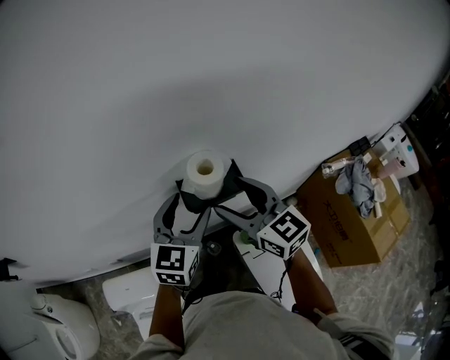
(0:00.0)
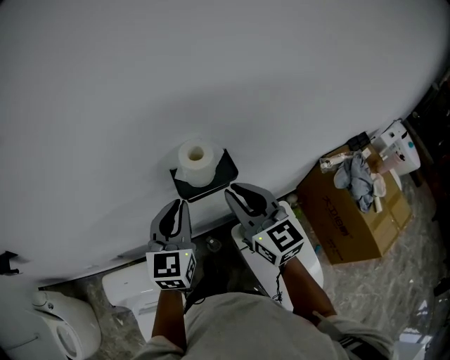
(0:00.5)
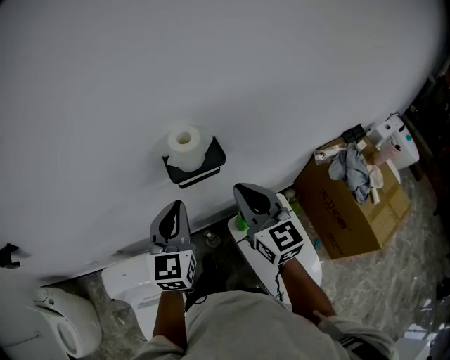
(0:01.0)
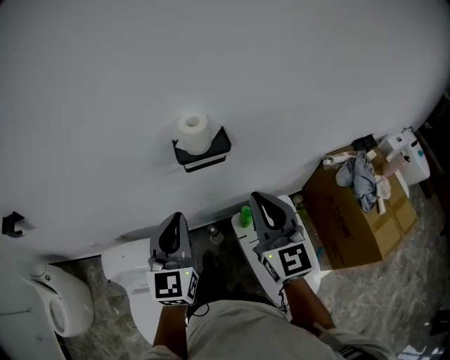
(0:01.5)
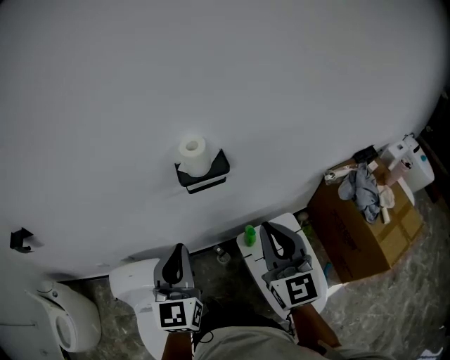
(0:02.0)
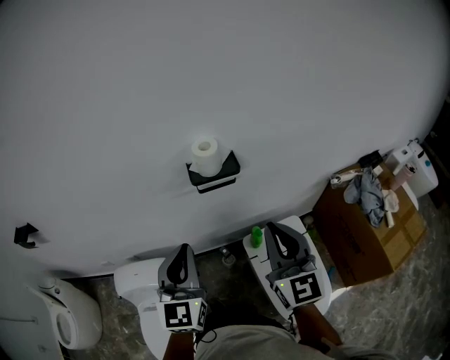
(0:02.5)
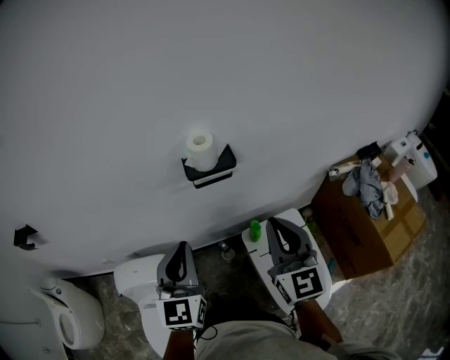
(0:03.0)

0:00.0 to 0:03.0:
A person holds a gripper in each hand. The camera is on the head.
0:00.0 to 0:01.5: The right gripper heads backward and to the right, covering about 20 cm, turns by approximately 20 degrees, and closes its fingers. The left gripper goes roughly 20 cm backward, and closes up.
0:01.5 to 0:03.0: The left gripper shifts by approximately 5 cm.

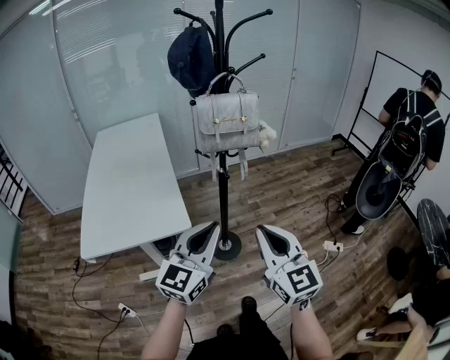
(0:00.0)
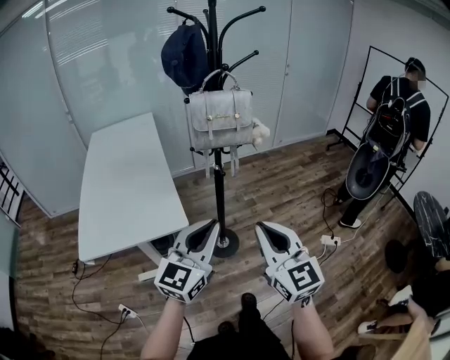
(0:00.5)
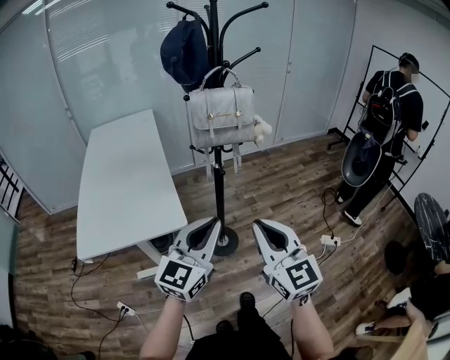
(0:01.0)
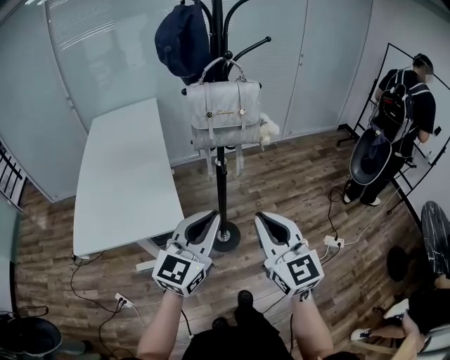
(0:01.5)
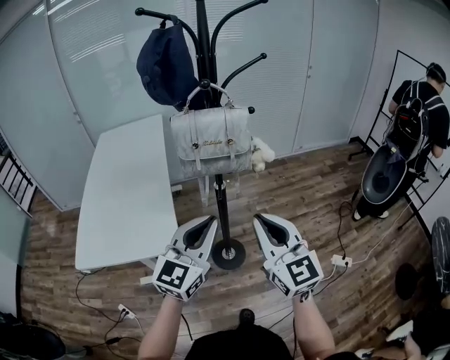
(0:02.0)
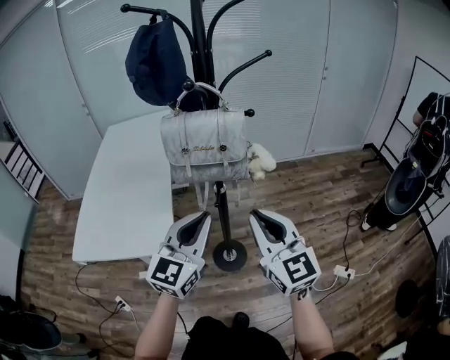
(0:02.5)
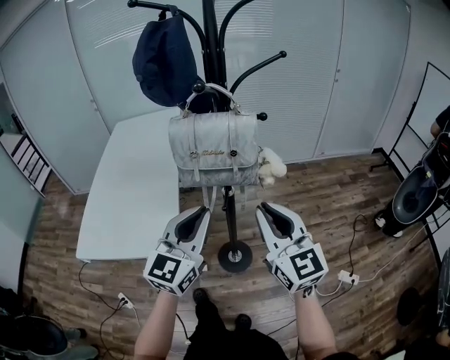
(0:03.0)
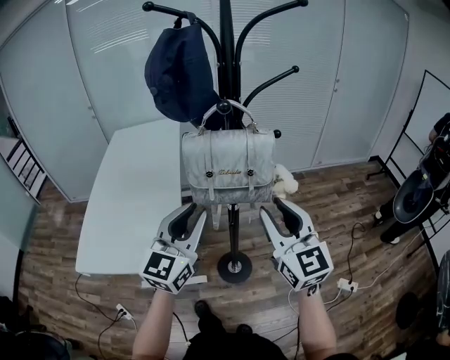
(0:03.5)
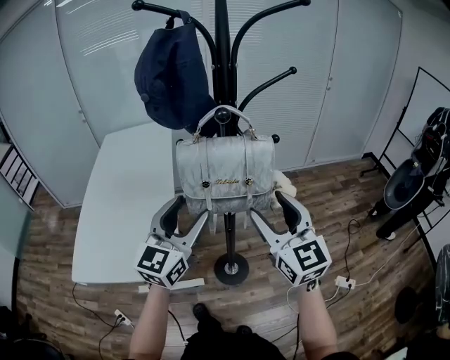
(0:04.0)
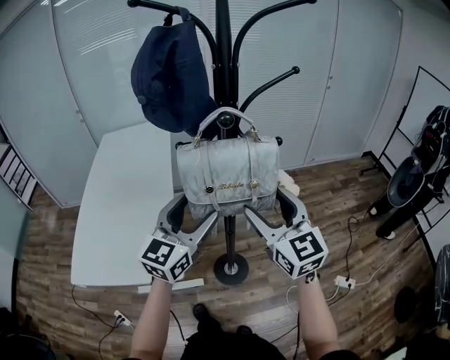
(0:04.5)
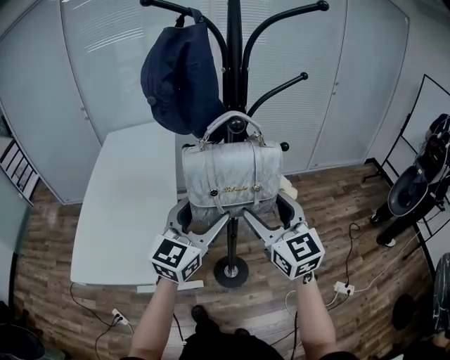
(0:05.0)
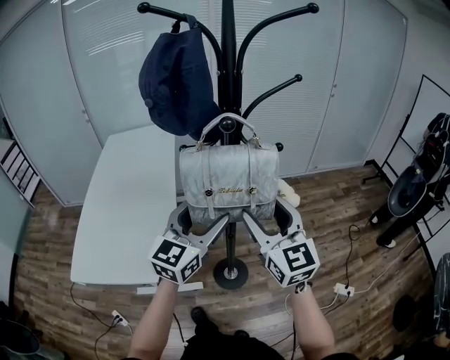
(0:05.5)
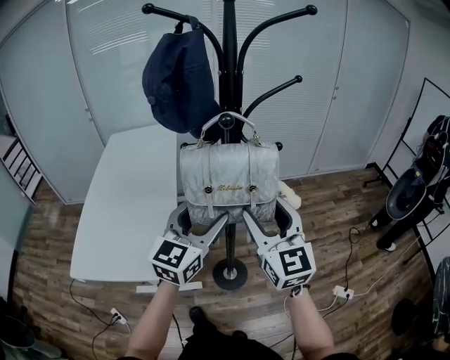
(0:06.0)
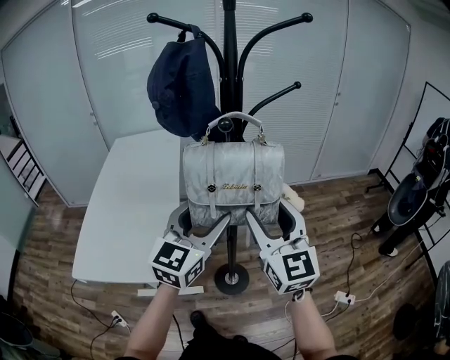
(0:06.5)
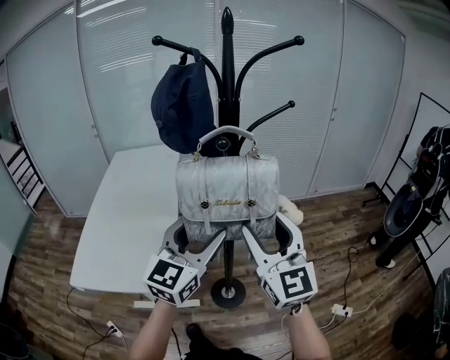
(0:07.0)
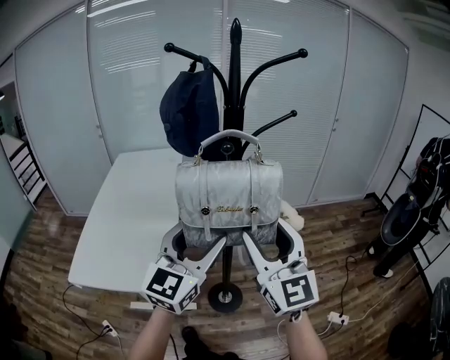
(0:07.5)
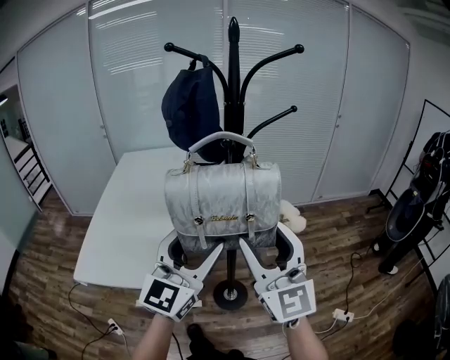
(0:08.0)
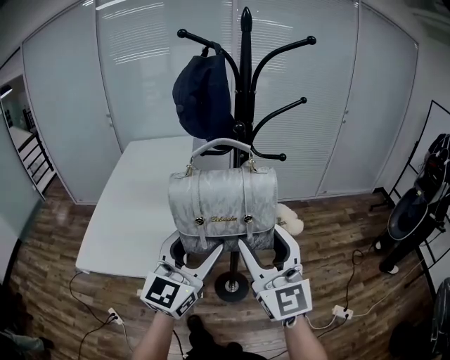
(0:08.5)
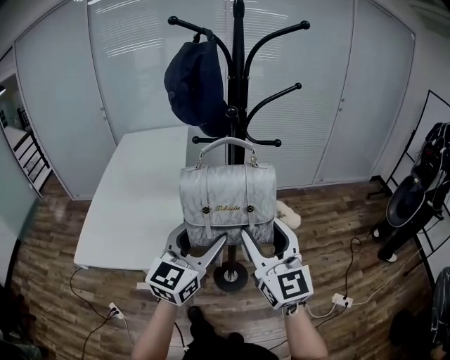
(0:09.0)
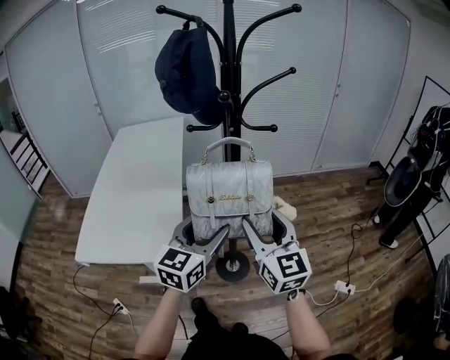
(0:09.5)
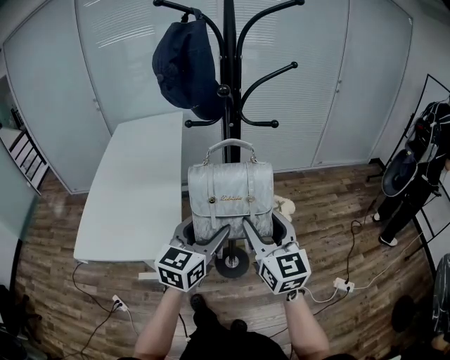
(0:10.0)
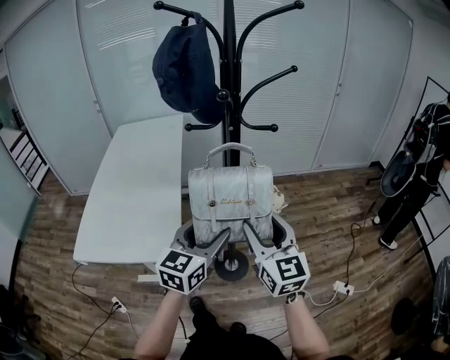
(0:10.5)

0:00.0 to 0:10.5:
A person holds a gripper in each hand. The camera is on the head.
0:00.0 to 0:02.0: The two grippers go some 15 cm forward.
0:02.0 to 0:04.0: The left gripper heads forward and to the left, covering approximately 15 cm, and opens its fingers; the right gripper heads forward, covering about 15 cm, and opens.
0:04.0 to 0:06.5: The left gripper moves about 5 cm.
0:06.5 to 0:08.5: The two grippers go roughly 10 cm backward.
0:08.5 to 0:10.5: The two grippers go about 10 cm downward. The right gripper rotates about 20 degrees. The left gripper rotates some 20 degrees.

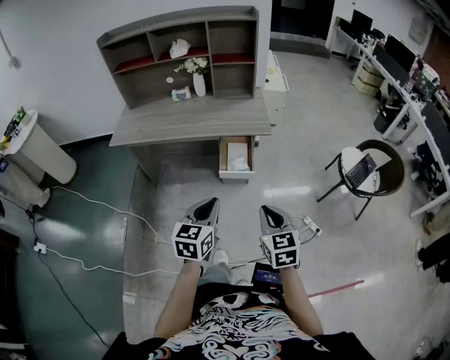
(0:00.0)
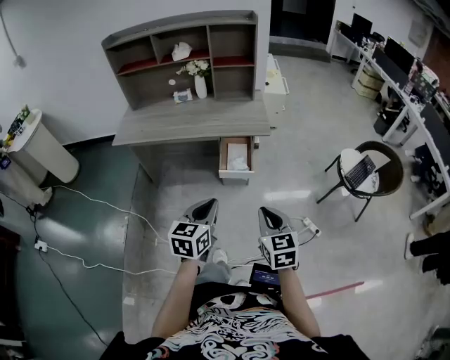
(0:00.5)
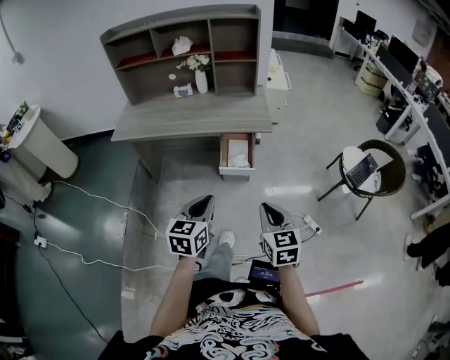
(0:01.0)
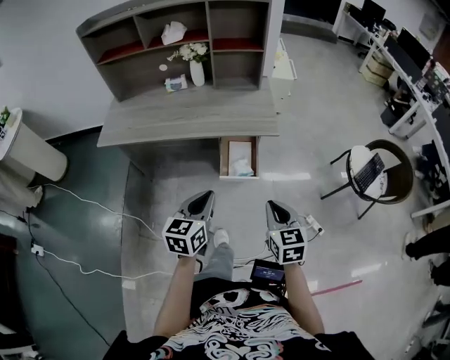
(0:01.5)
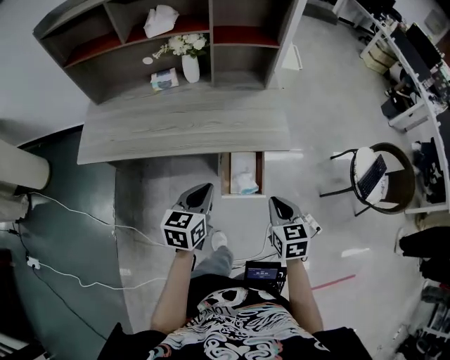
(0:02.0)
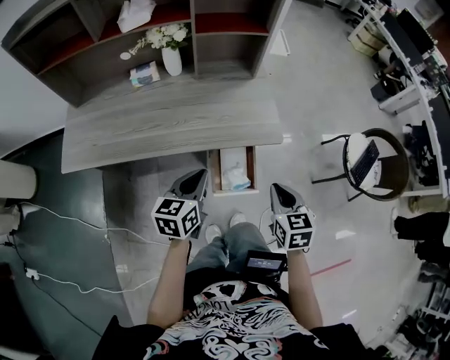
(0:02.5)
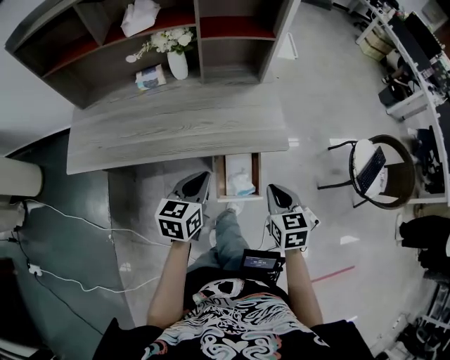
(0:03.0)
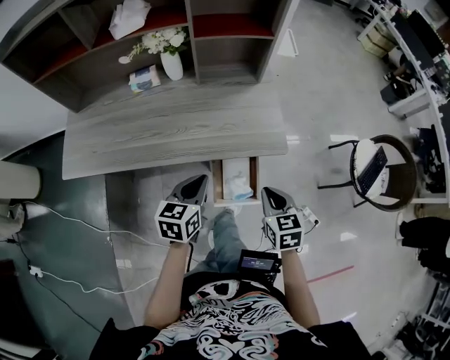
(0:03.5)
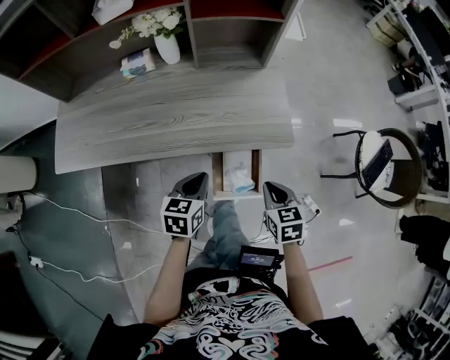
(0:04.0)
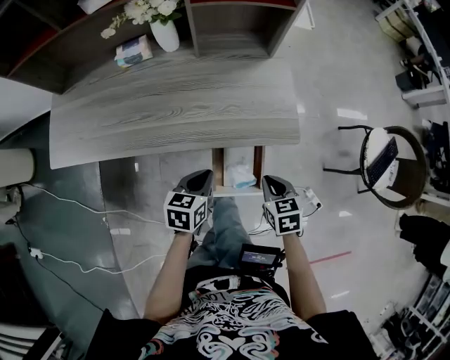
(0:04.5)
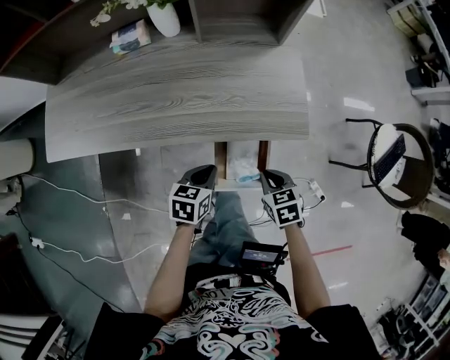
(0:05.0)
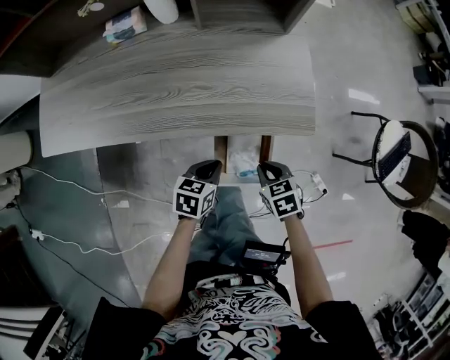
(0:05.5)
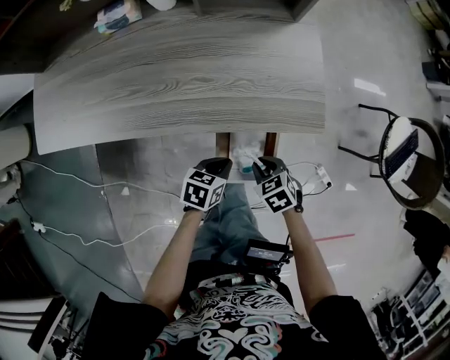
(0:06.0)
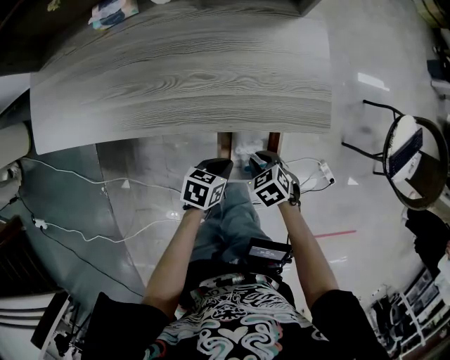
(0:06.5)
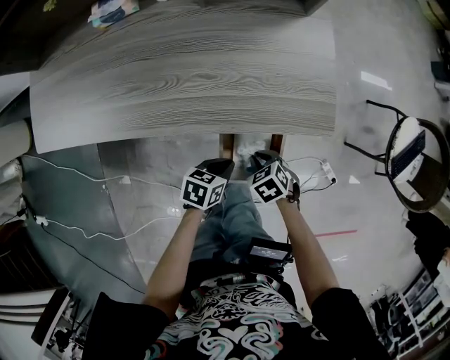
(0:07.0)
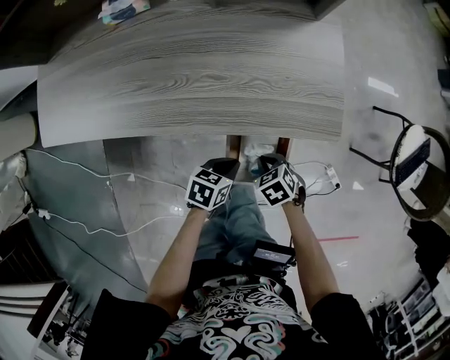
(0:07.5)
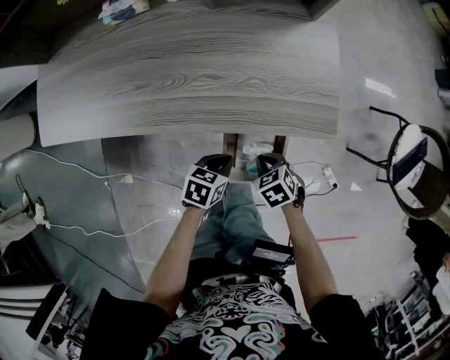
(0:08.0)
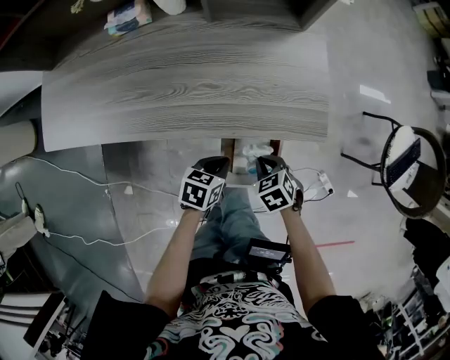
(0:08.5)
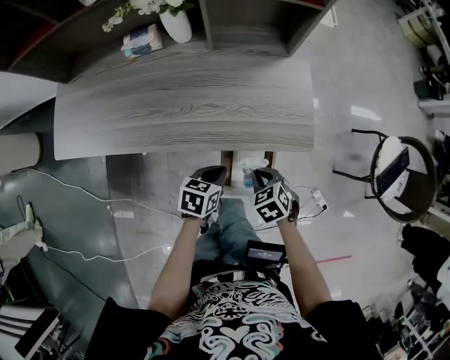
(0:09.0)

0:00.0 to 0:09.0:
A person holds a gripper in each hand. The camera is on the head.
0:00.0 to 0:02.0: Both grippers travel together forward, roughly 30 cm.
0:02.0 to 0:04.5: Both grippers travel together downward and forward, about 15 cm.
0:04.5 to 0:07.0: Both grippers travel together downward, approximately 15 cm. The right gripper swivels some 30 degrees. The left gripper swivels roughly 20 degrees.
0:07.0 to 0:09.0: The grippers both shift upward by approximately 10 cm.

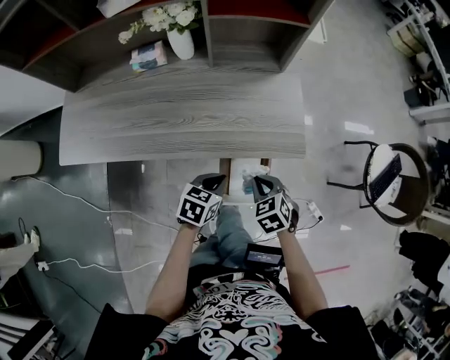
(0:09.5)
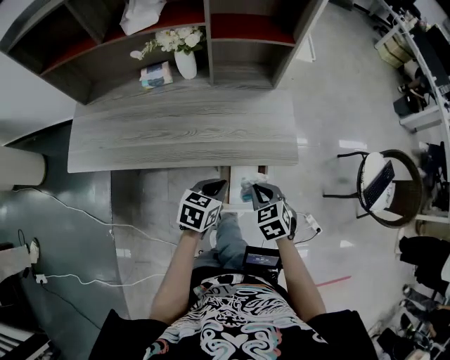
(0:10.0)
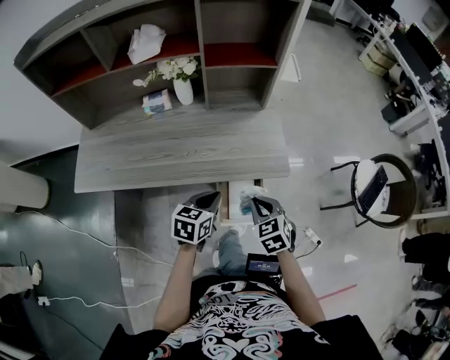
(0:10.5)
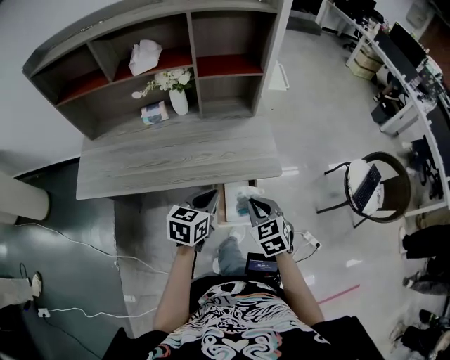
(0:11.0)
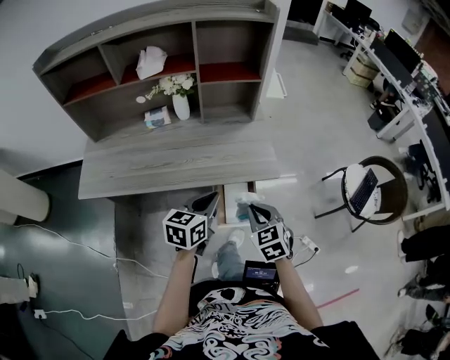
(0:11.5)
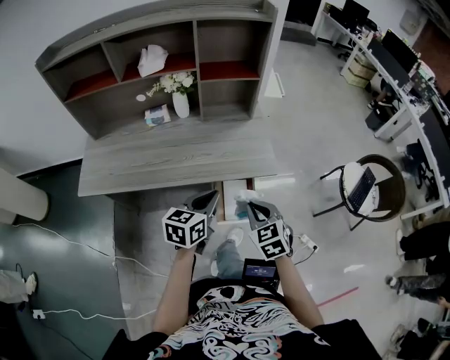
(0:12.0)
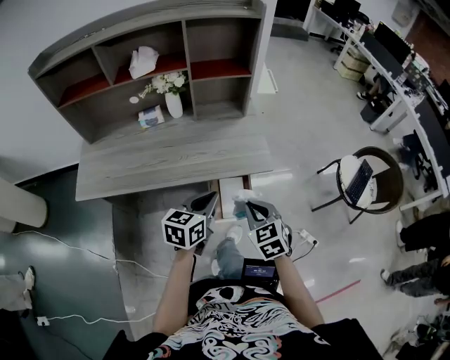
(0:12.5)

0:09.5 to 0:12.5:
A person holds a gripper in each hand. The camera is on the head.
0:09.5 to 0:11.0: Both grippers move upward, about 15 cm. The right gripper swivels approximately 20 degrees. Meanwhile the left gripper rotates about 20 degrees.
0:11.0 to 0:12.5: The right gripper moves backward, about 5 cm, while the left gripper moves approximately 5 cm.

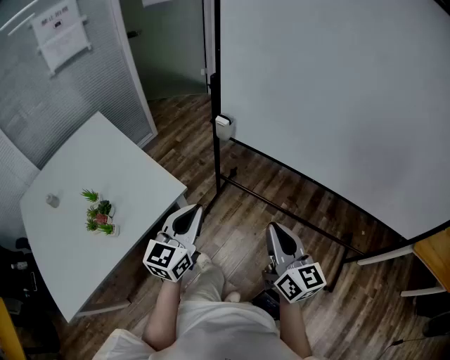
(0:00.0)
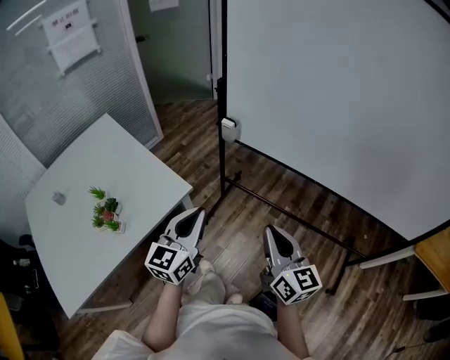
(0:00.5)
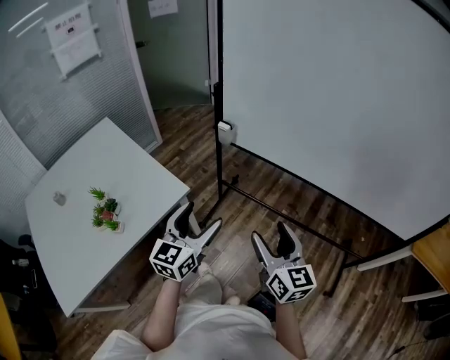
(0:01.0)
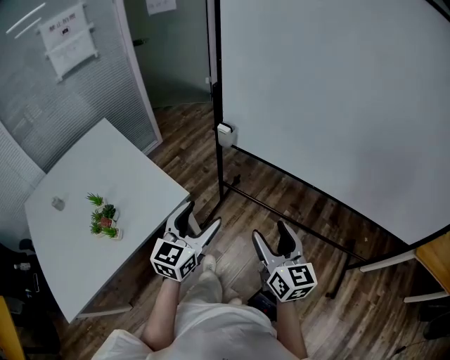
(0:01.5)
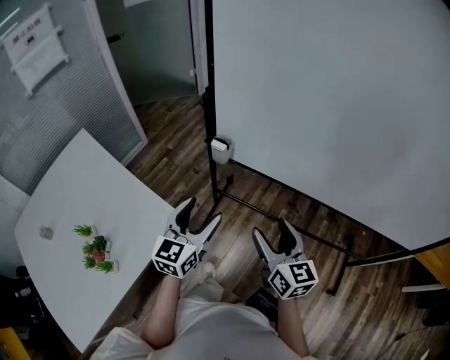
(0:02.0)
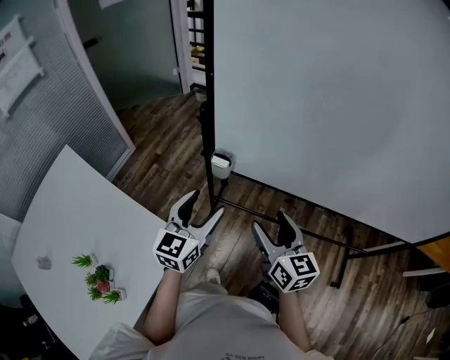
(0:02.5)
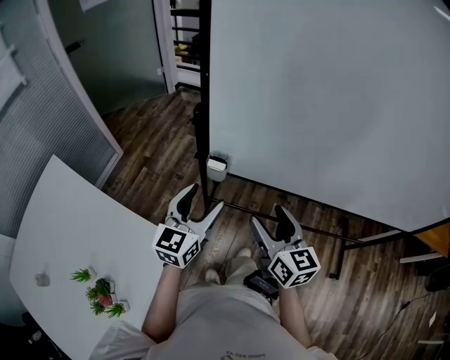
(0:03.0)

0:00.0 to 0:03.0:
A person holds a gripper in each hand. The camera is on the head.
0:00.0 to 0:01.5: The right gripper opens its fingers. Meanwhile the left gripper opens its fingers.
0:01.5 to 0:03.0: The left gripper is displaced forward by approximately 30 cm. Meanwhile the right gripper goes some 25 cm forward and to the left.
